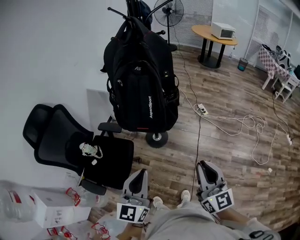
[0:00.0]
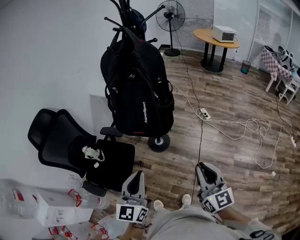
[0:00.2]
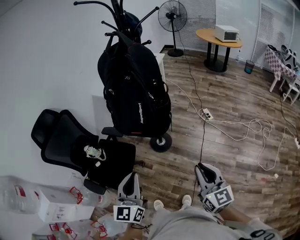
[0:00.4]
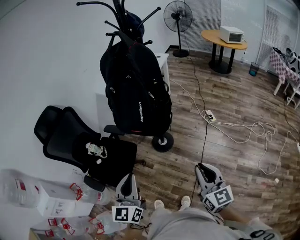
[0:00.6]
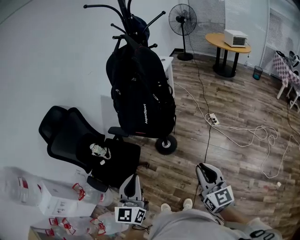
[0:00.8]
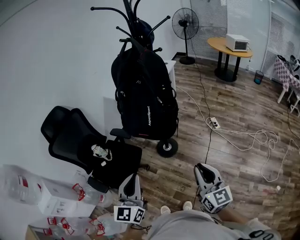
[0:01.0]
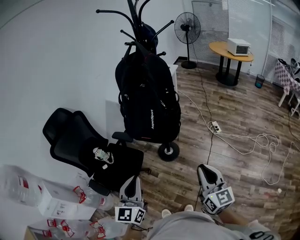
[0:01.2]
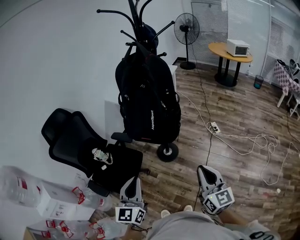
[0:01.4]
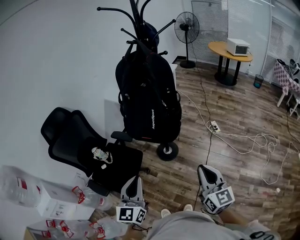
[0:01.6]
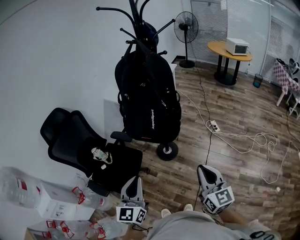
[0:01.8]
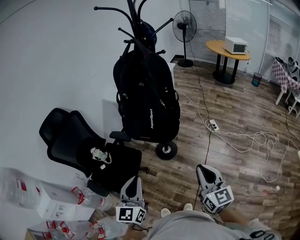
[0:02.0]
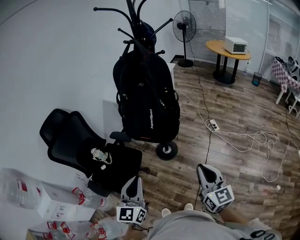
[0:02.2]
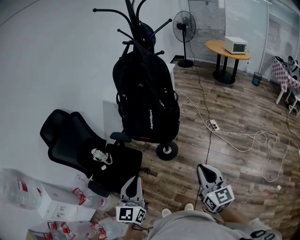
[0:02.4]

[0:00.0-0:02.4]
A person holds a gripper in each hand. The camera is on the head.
0:00.0 to 0:01.2: The right gripper shifts some 5 cm to the right.
0:01.2 to 0:02.4: The grippers make only small movements.

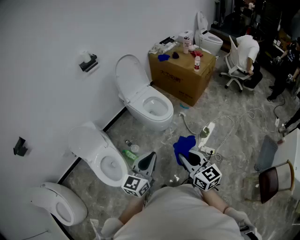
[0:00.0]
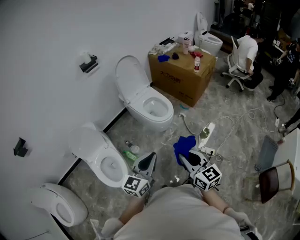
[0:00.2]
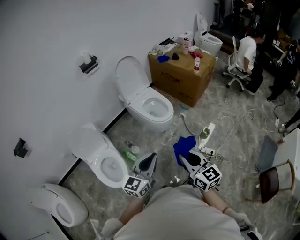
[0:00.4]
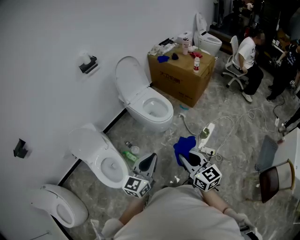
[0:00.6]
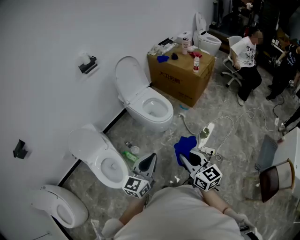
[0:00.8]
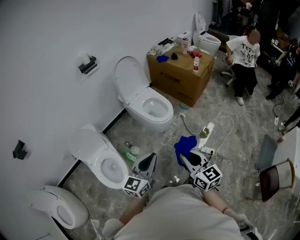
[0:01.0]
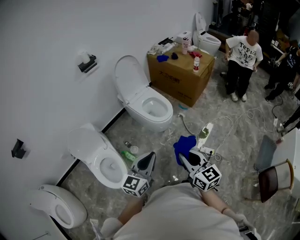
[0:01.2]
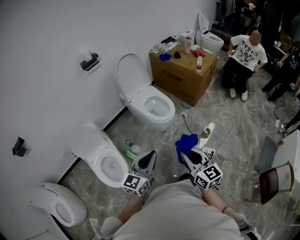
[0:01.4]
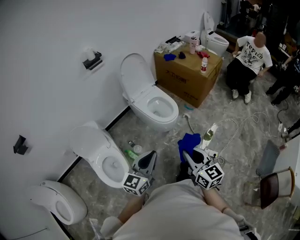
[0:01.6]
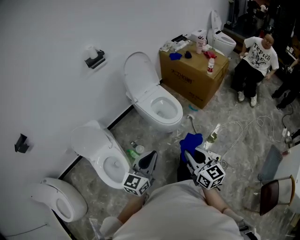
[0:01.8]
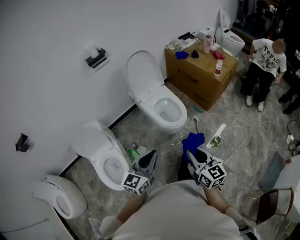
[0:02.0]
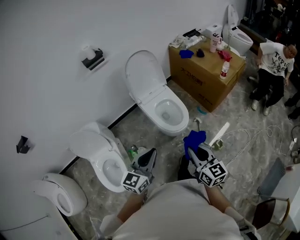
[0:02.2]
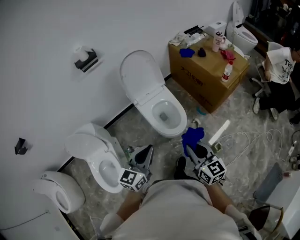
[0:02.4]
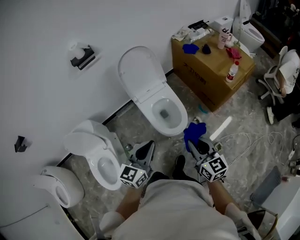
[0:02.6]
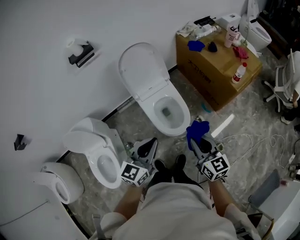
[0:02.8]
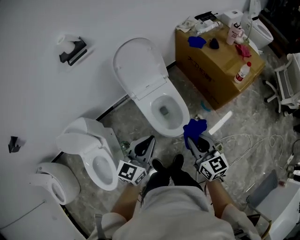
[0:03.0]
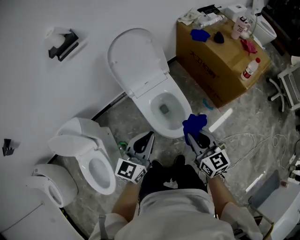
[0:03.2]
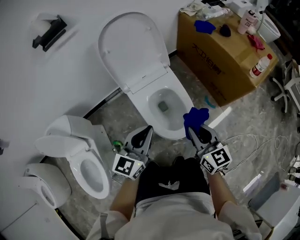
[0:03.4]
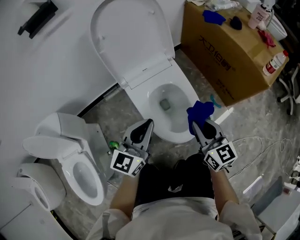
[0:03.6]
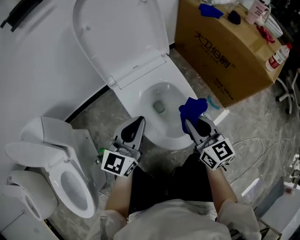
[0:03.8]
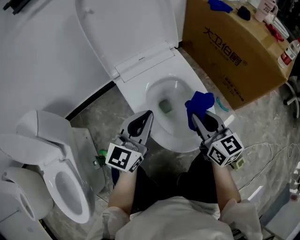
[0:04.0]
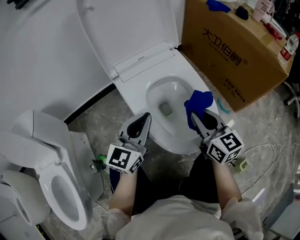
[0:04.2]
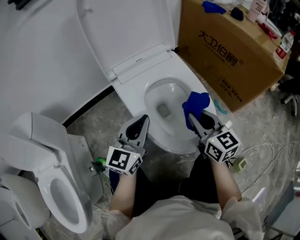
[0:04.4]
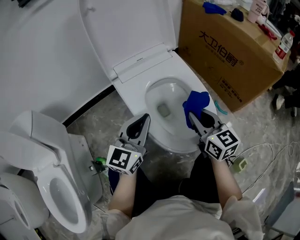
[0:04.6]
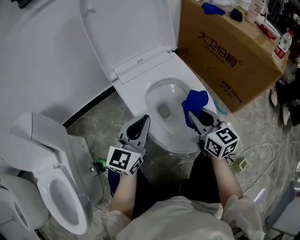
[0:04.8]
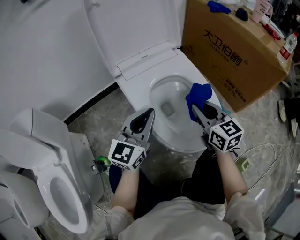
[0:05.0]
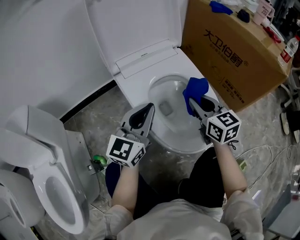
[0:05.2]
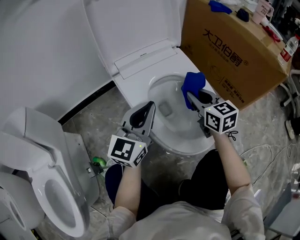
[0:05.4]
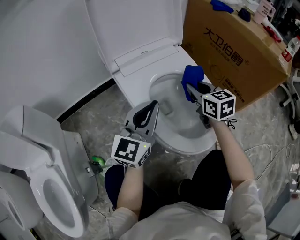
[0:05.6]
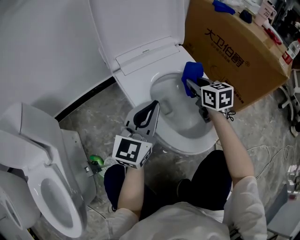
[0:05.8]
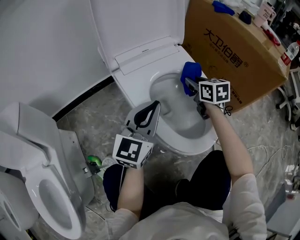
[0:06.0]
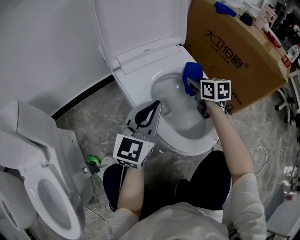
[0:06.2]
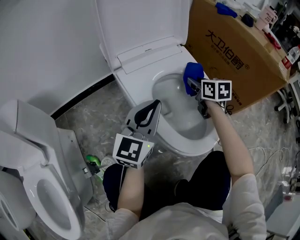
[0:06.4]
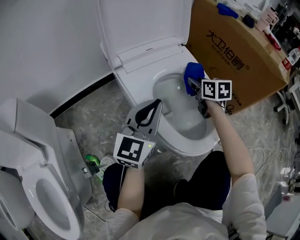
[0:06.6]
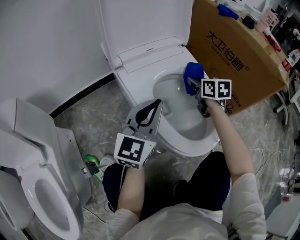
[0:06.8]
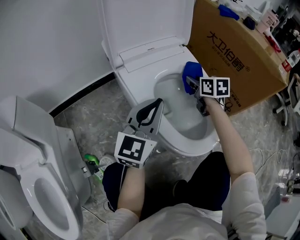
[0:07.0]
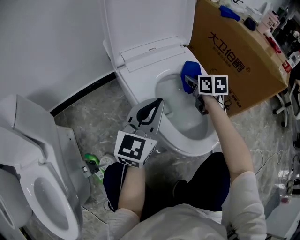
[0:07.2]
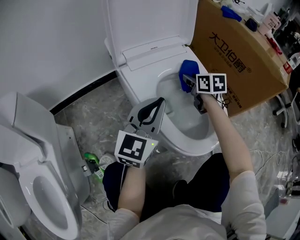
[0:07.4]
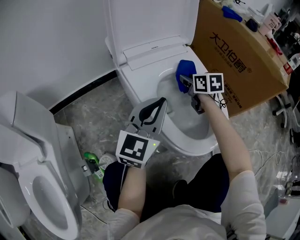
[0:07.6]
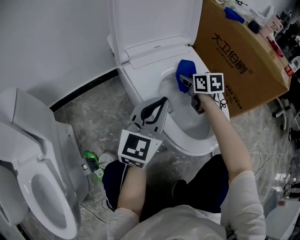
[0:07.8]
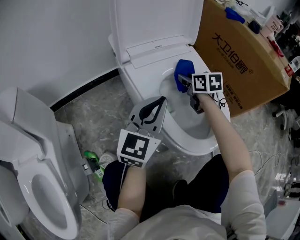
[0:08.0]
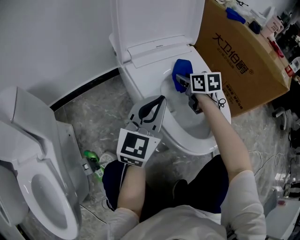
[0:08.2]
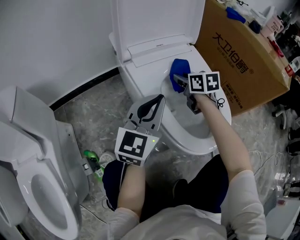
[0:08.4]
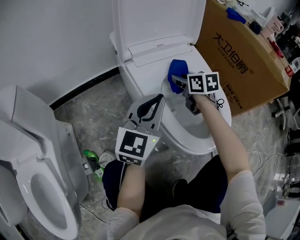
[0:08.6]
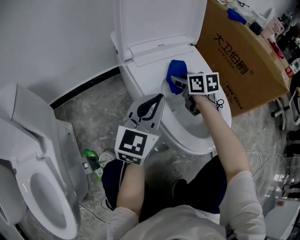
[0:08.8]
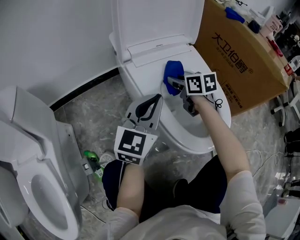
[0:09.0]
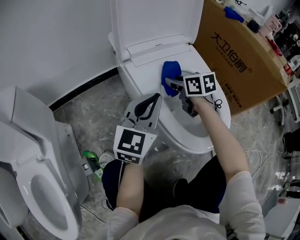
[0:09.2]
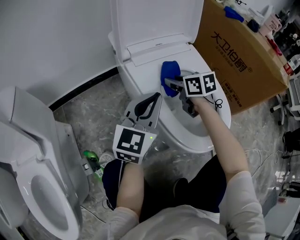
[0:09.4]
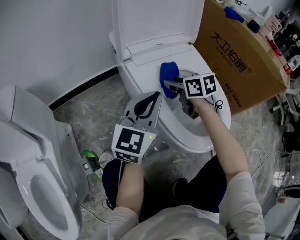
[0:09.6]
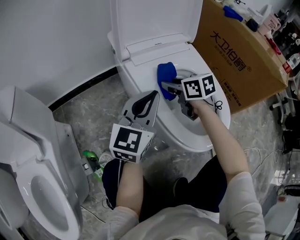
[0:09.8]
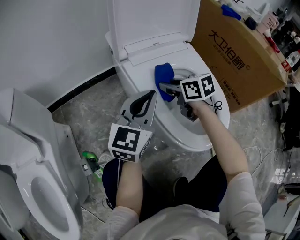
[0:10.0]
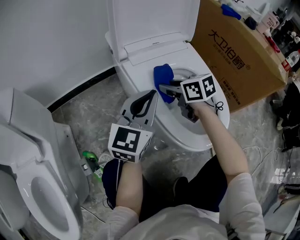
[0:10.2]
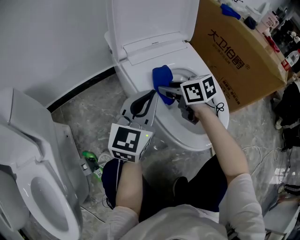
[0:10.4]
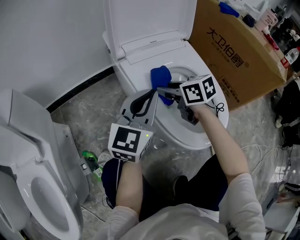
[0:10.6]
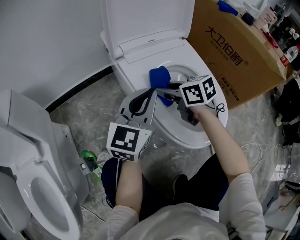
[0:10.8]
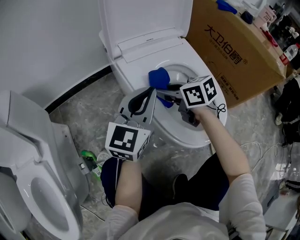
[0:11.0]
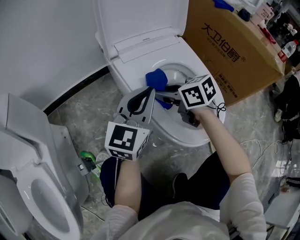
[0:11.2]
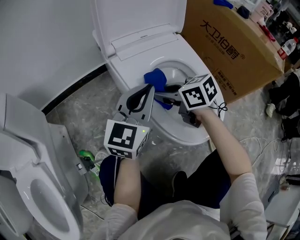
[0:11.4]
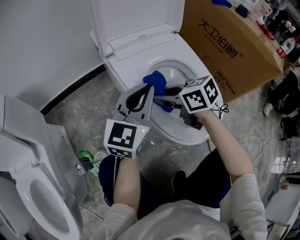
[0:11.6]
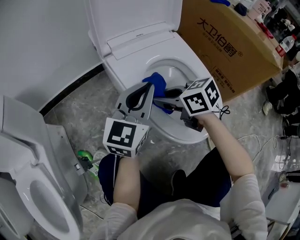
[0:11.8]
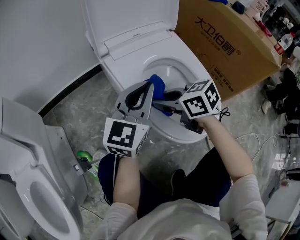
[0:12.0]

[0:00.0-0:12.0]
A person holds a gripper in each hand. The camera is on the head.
0:00.0 to 0:01.6: There are only small adjustments of the grippers.
0:01.6 to 0:03.0: Both grippers are carried forward, approximately 50 cm.
0:03.0 to 0:04.4: The grippers both shift downward by roughly 50 cm.
0:04.4 to 0:06.0: The right gripper moves forward and downward, approximately 20 cm.
0:06.0 to 0:07.6: The right gripper goes approximately 5 cm to the left.
0:07.6 to 0:09.0: The right gripper moves to the left, about 10 cm.
0:09.0 to 0:10.4: The right gripper goes some 5 cm backward.
0:10.4 to 0:12.0: The right gripper travels backward by approximately 10 cm.

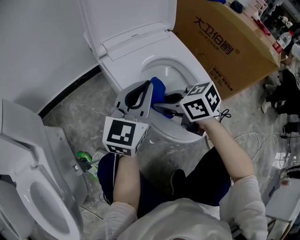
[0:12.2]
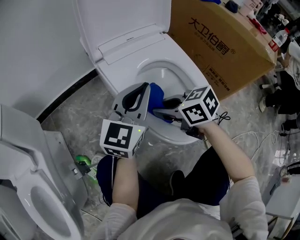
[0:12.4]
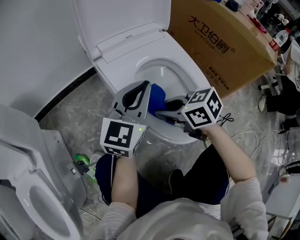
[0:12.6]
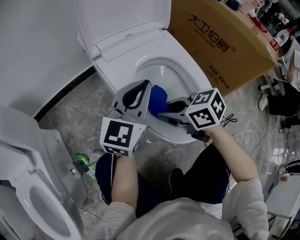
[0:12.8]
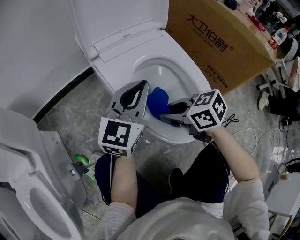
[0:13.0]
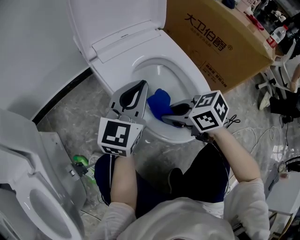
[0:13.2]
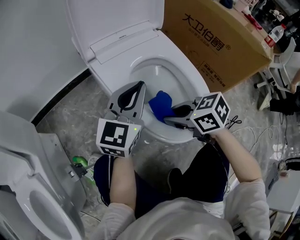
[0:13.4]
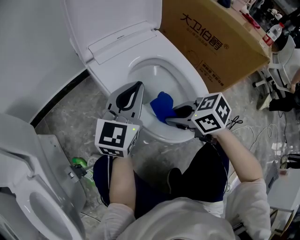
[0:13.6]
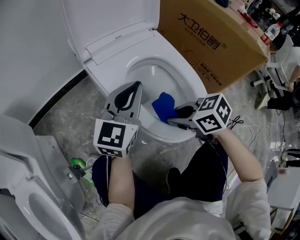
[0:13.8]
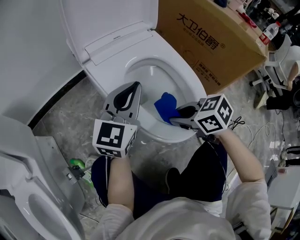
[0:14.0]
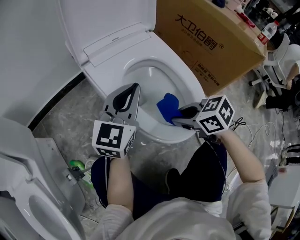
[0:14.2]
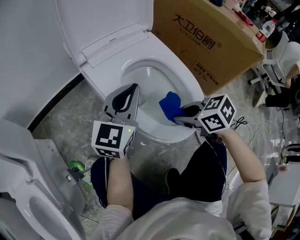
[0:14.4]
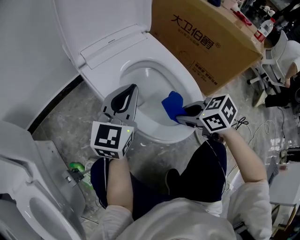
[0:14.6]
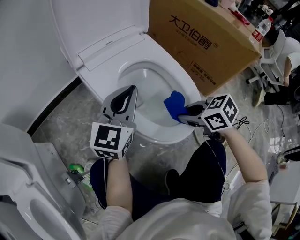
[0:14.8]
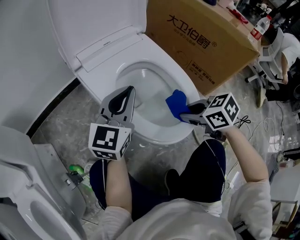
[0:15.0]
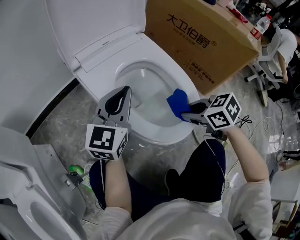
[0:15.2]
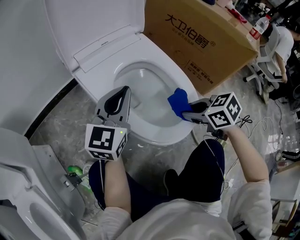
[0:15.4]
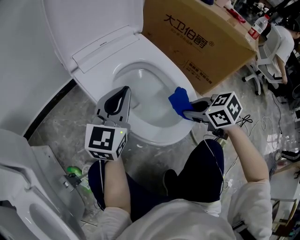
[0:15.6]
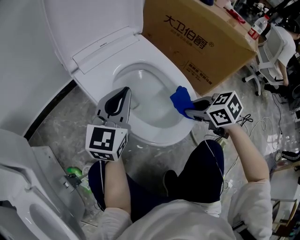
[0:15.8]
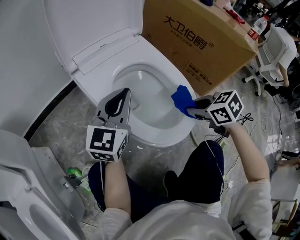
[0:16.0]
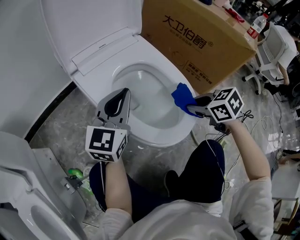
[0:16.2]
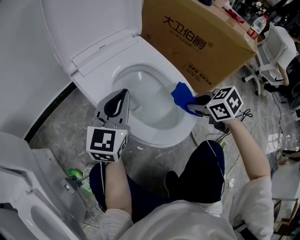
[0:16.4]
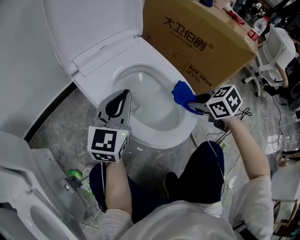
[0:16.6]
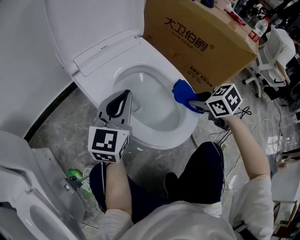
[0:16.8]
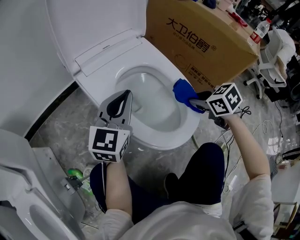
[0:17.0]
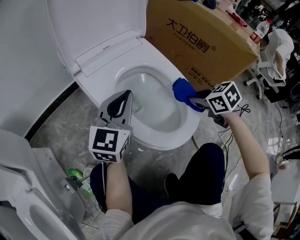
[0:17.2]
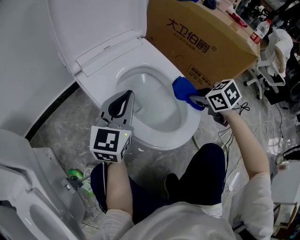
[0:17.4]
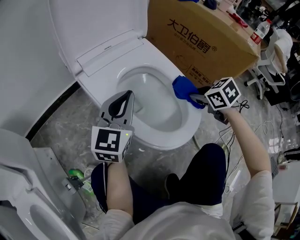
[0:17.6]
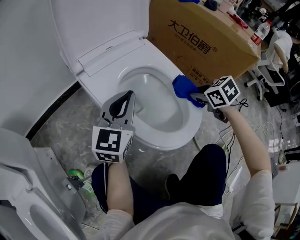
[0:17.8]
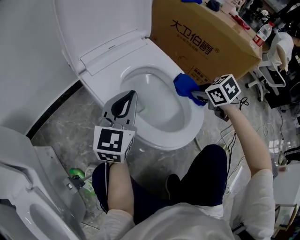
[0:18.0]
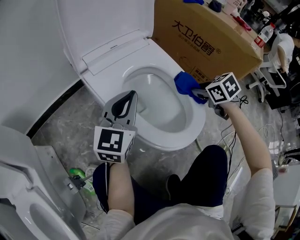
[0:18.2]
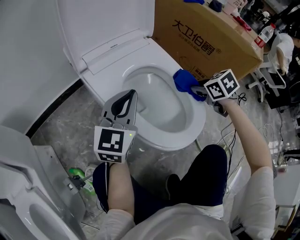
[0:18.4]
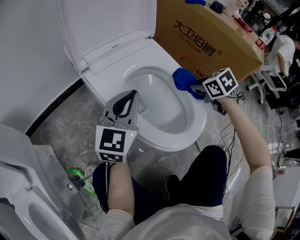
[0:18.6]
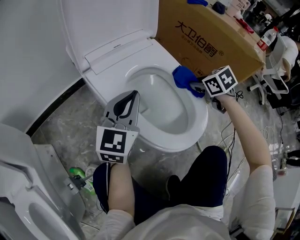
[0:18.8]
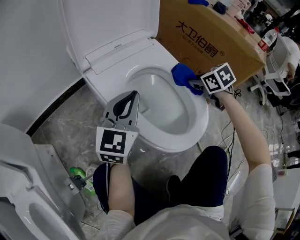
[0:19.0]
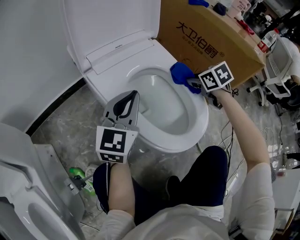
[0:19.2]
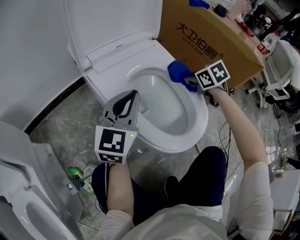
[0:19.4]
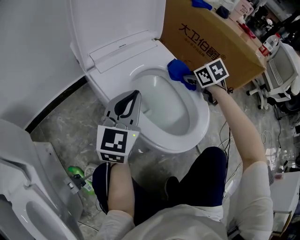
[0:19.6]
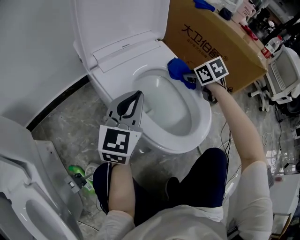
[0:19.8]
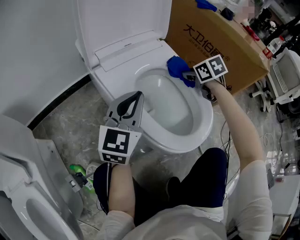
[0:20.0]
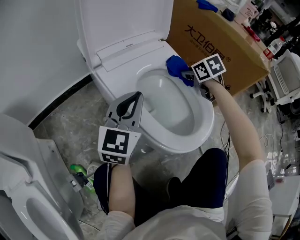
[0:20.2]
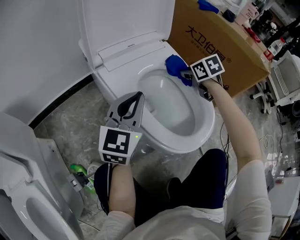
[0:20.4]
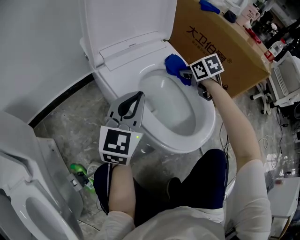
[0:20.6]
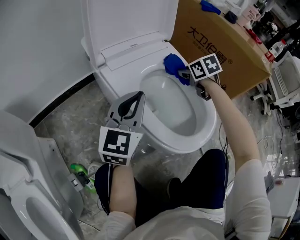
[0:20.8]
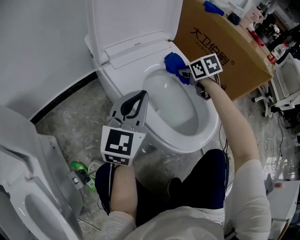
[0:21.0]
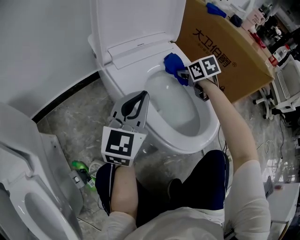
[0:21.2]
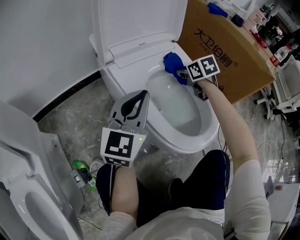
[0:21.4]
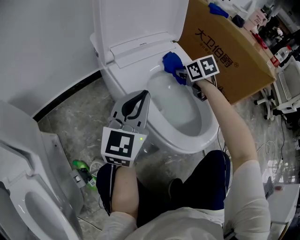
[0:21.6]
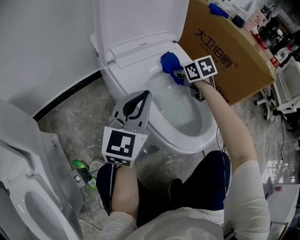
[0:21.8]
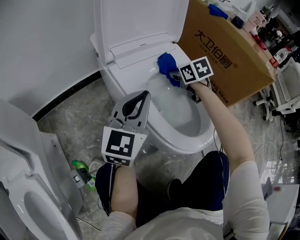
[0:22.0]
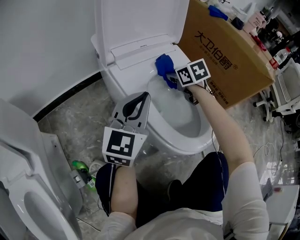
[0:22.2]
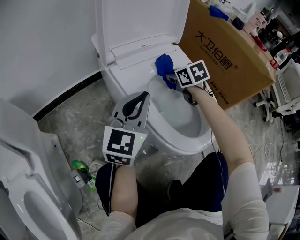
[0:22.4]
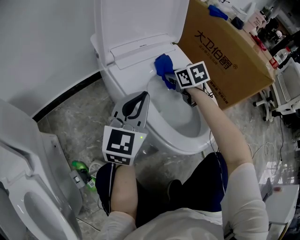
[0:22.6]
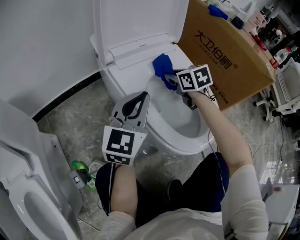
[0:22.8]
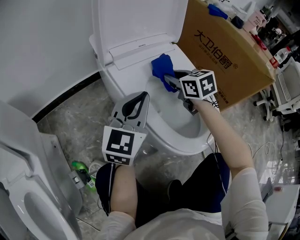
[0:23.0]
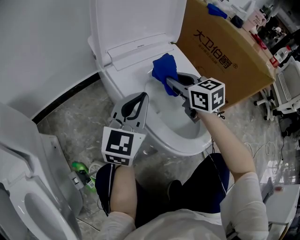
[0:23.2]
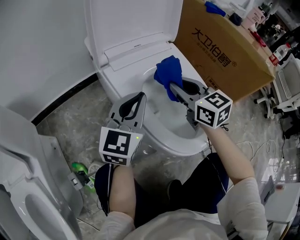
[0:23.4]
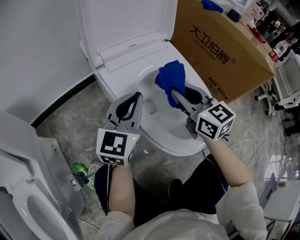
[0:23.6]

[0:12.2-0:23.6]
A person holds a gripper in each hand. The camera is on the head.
0:12.2 to 0:13.6: The right gripper travels backward by roughly 5 cm.
0:13.6 to 0:15.0: The right gripper goes about 10 cm to the right.
0:15.0 to 0:16.4: The right gripper moves to the right, roughly 5 cm.
0:16.4 to 0:17.8: The right gripper shifts about 5 cm forward.
0:17.8 to 0:19.4: The right gripper travels forward by roughly 10 cm.
0:19.4 to 0:20.8: The right gripper moves to the left, approximately 5 cm.
0:20.8 to 0:22.2: The right gripper heads to the left, covering some 10 cm.
0:22.2 to 0:23.6: The right gripper travels backward and upward by roughly 15 cm, and angles its fingers upward, by approximately 30 degrees.
